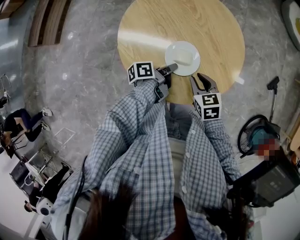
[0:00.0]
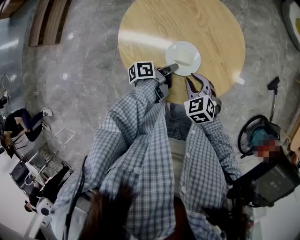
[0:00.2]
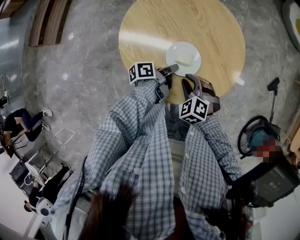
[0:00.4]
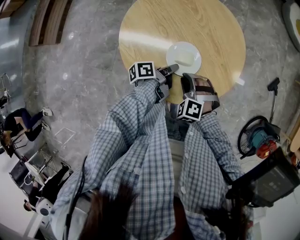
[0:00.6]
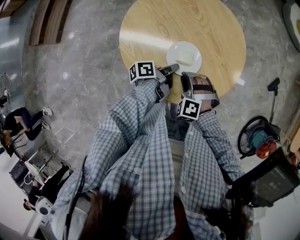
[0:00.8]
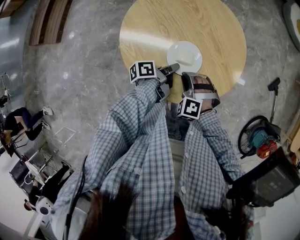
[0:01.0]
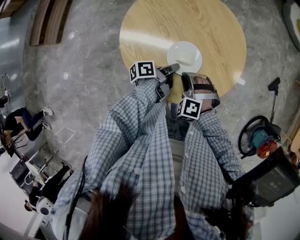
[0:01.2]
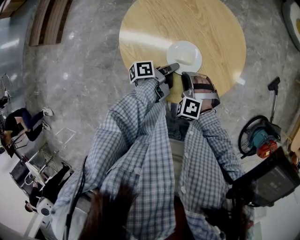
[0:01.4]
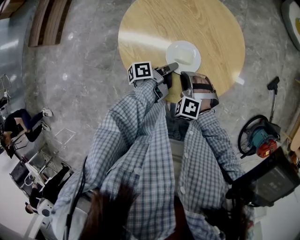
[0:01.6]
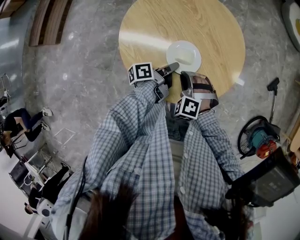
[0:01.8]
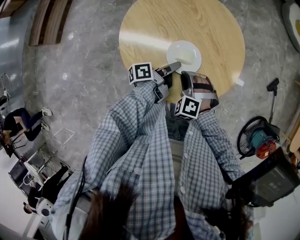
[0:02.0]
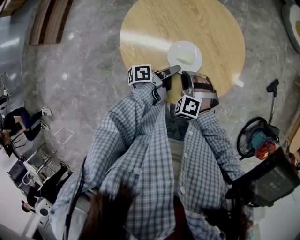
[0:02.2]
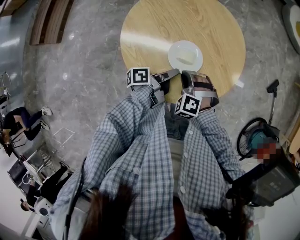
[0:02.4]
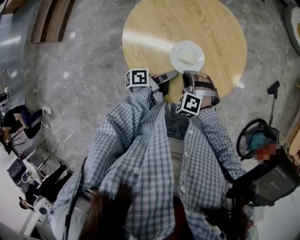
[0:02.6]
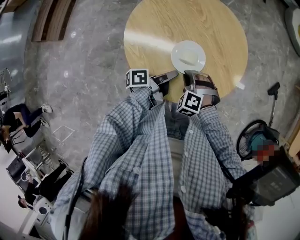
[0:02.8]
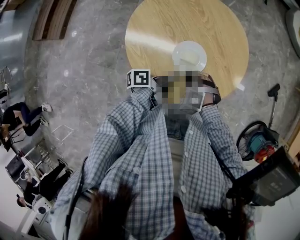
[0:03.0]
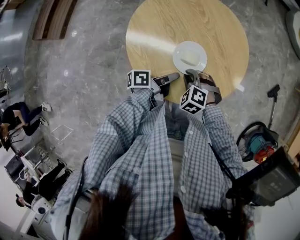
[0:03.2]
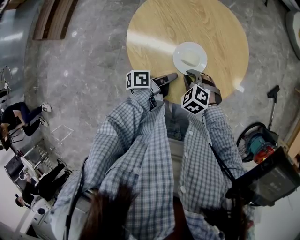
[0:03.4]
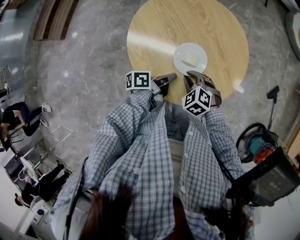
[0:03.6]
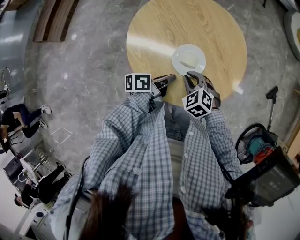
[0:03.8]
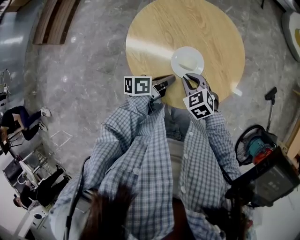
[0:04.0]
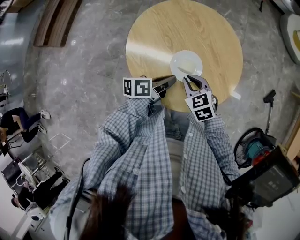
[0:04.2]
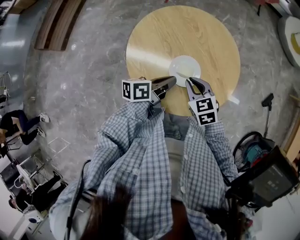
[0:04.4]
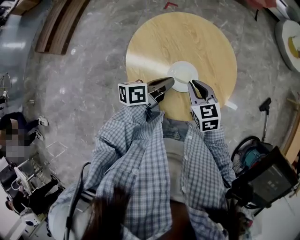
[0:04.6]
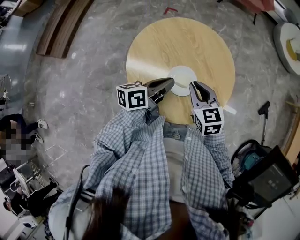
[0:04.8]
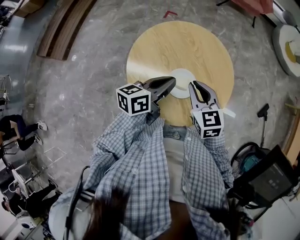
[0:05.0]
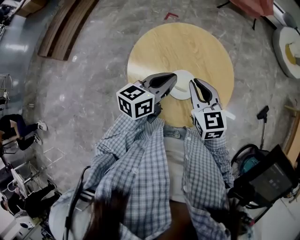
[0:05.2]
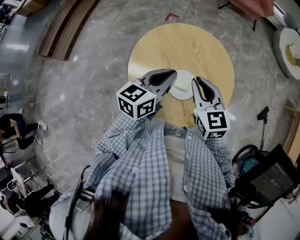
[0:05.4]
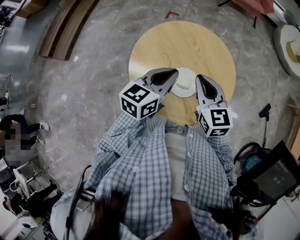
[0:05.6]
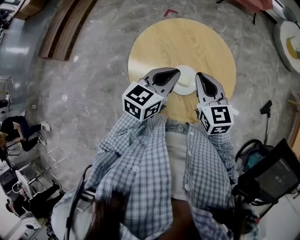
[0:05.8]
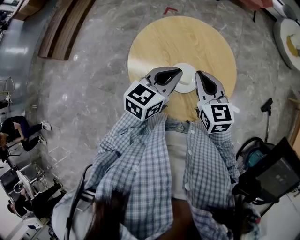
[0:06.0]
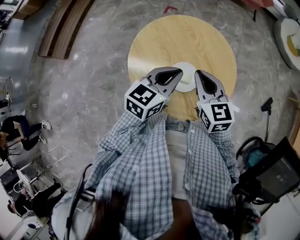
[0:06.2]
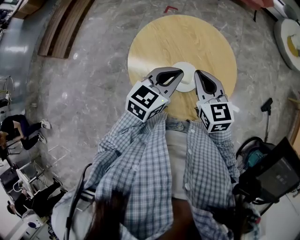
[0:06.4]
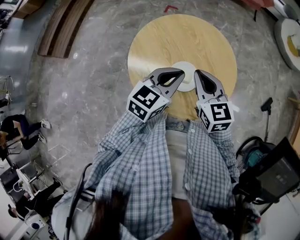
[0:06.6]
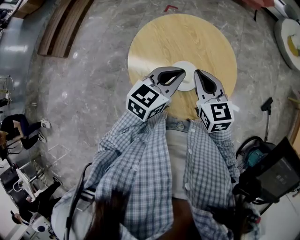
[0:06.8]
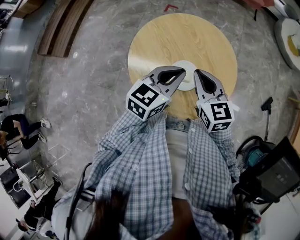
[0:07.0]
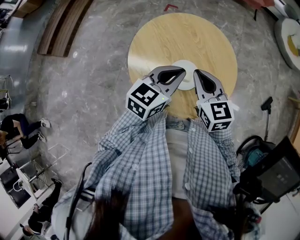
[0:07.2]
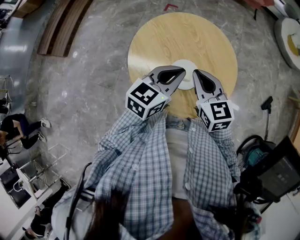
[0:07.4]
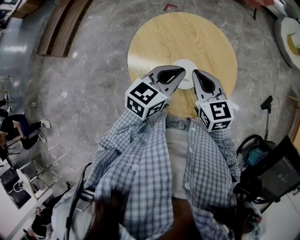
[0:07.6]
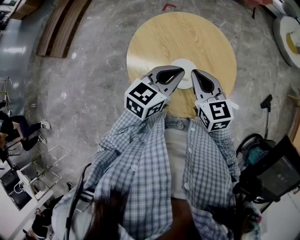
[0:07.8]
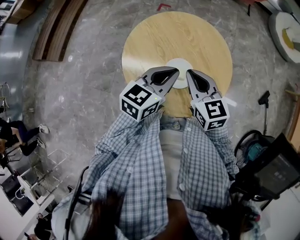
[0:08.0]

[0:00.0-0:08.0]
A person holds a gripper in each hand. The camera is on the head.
0:00.0 to 0:01.6: The right gripper changes place by some 5 cm, and twists roughly 60 degrees counterclockwise, seen from behind.
0:03.2 to 0:04.8: The right gripper is displaced upward by approximately 15 cm, and rolls clockwise, seen from behind, by about 50 degrees.
0:04.8 to 0:06.4: The right gripper is displaced upward by roughly 5 cm.

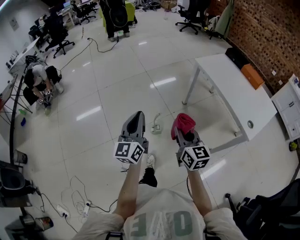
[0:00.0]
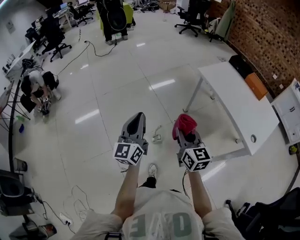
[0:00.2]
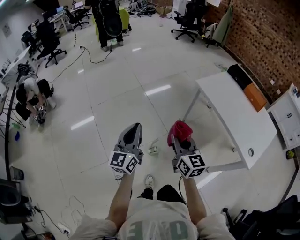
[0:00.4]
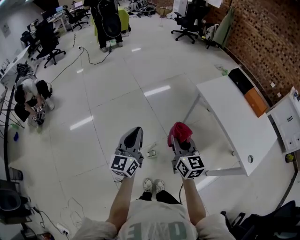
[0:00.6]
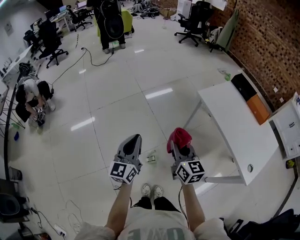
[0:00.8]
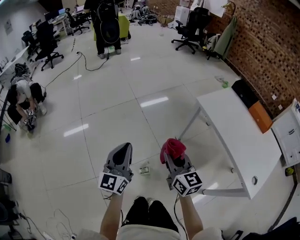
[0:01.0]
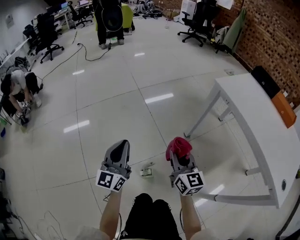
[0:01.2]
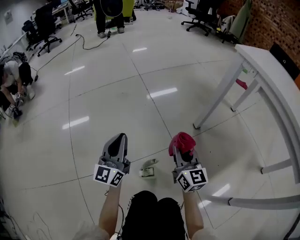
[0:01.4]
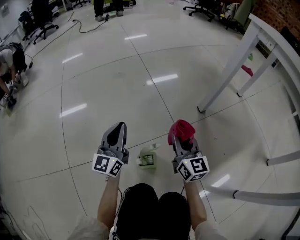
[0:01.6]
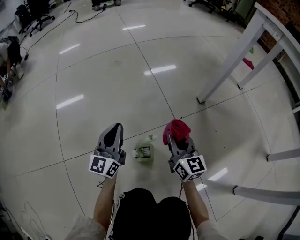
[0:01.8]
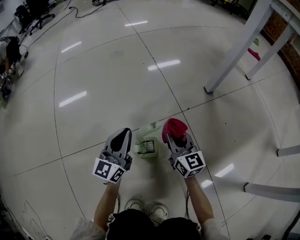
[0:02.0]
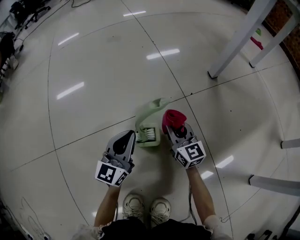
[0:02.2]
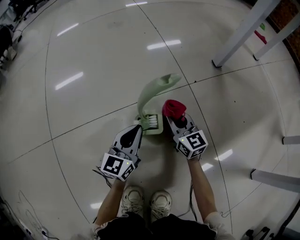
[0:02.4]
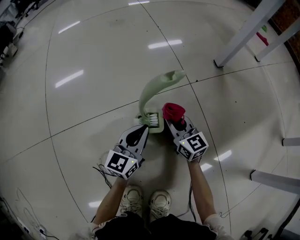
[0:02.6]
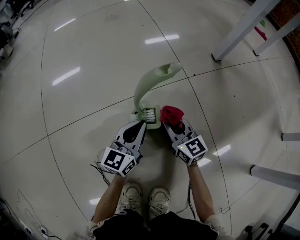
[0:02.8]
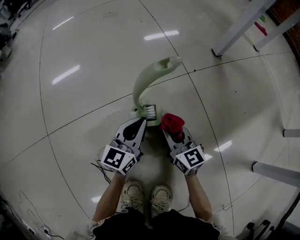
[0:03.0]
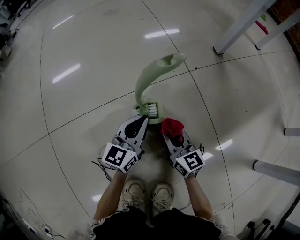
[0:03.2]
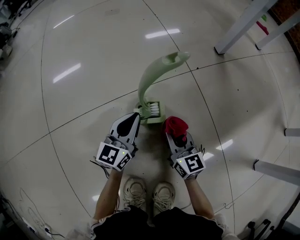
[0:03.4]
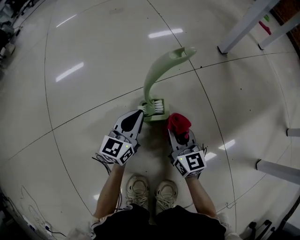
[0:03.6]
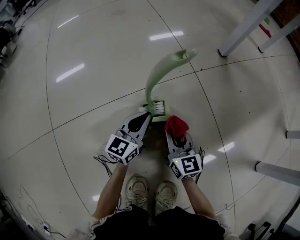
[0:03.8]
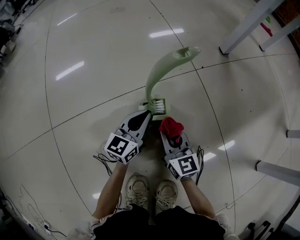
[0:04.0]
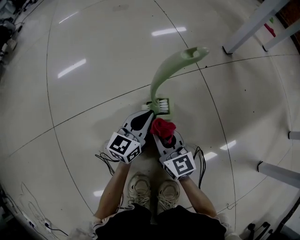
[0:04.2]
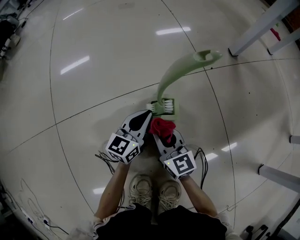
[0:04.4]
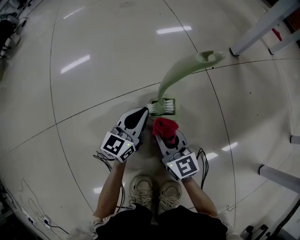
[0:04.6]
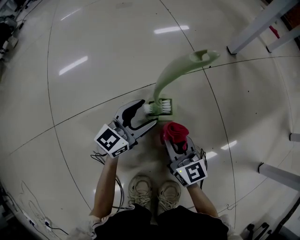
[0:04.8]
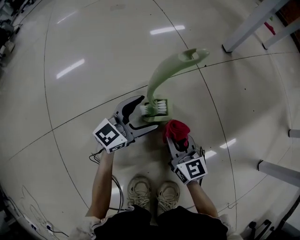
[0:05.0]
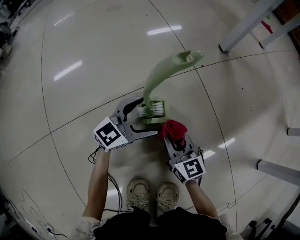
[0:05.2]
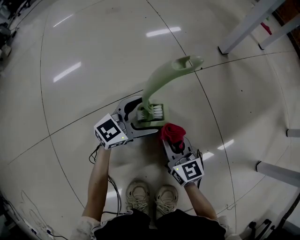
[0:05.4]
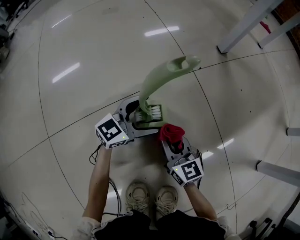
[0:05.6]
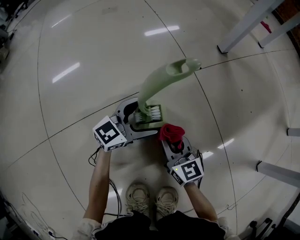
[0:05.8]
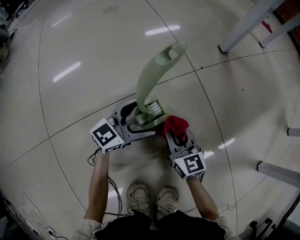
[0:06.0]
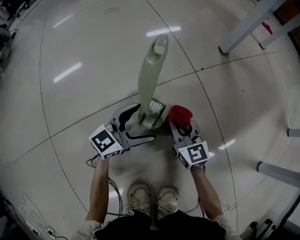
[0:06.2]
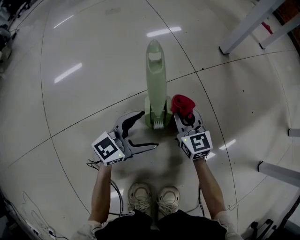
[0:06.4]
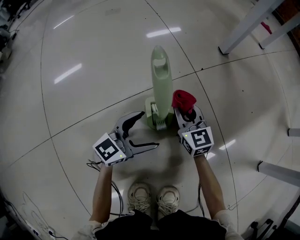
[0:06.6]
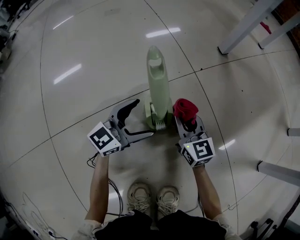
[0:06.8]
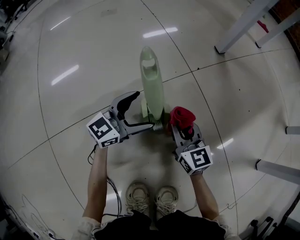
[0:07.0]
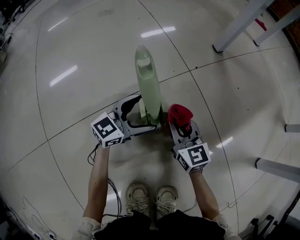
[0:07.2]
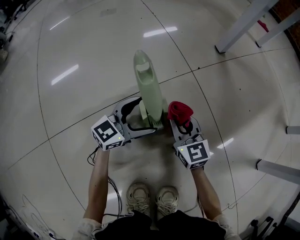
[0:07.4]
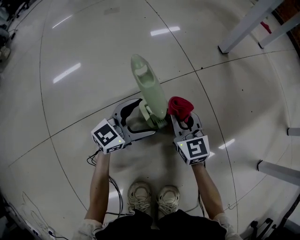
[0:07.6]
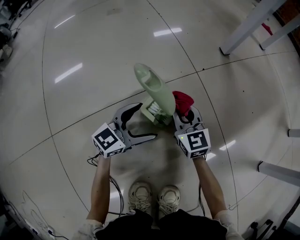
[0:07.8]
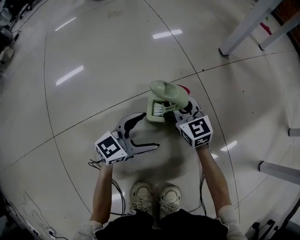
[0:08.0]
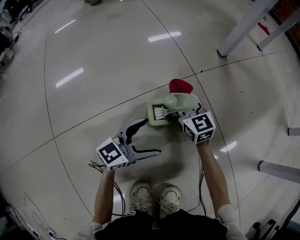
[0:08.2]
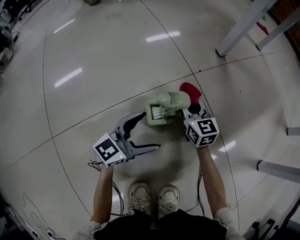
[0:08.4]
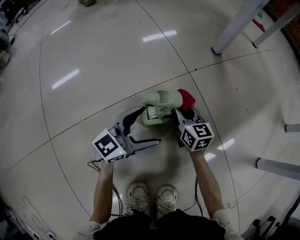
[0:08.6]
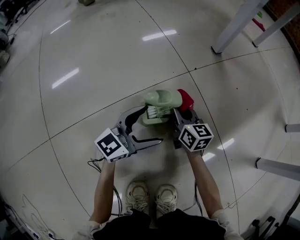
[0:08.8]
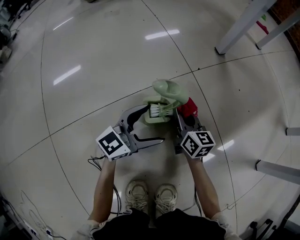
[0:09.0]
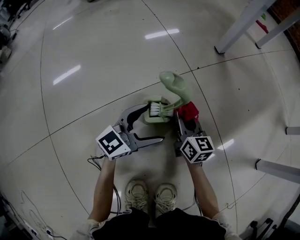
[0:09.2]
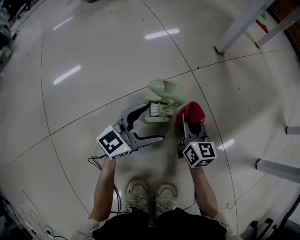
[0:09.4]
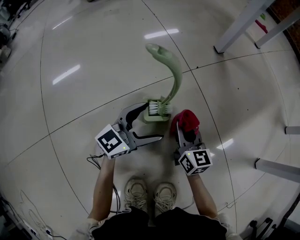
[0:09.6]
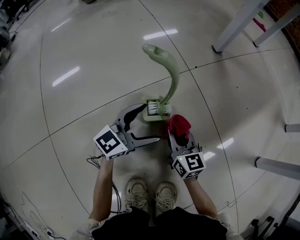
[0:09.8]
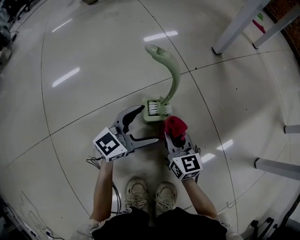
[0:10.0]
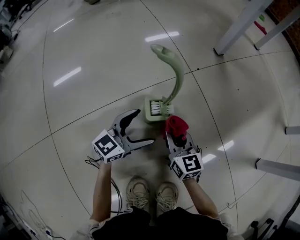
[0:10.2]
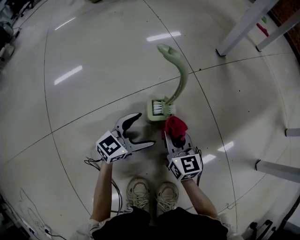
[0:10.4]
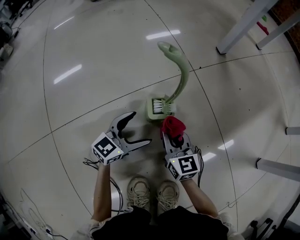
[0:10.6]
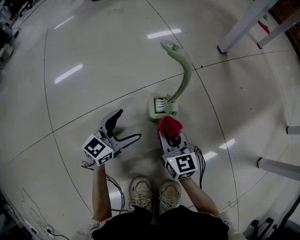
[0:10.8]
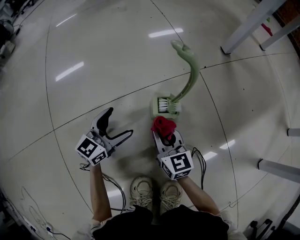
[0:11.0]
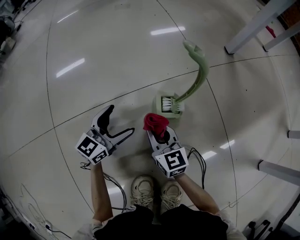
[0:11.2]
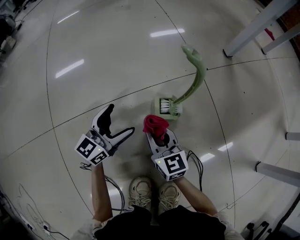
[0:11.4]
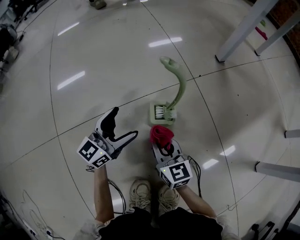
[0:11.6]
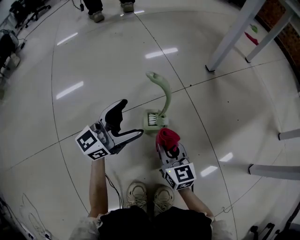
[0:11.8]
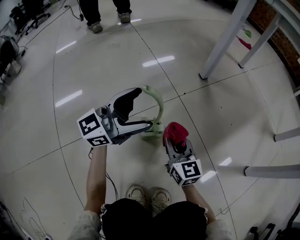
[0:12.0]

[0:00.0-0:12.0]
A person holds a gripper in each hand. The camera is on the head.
0:00.0 to 0:01.6: The two grippers go some 70 cm downward and forward.
0:01.6 to 0:03.0: Both grippers move downward and backward, approximately 30 cm. The left gripper changes its angle by about 20 degrees.
0:03.0 to 0:04.4: The right gripper moves to the left, some 10 cm. Meanwhile the left gripper shifts by approximately 5 cm.
0:04.4 to 0:06.0: The right gripper goes about 10 cm to the right and forward, while the left gripper moves roughly 5 cm, changes its angle by approximately 30 degrees, and opens.
0:06.0 to 0:07.6: The right gripper is displaced forward by some 5 cm.
0:07.6 to 0:09.0: The left gripper moves roughly 5 cm. The right gripper ends up about 5 cm from where it was, and rotates about 30 degrees.
0:09.0 to 0:10.4: The right gripper goes some 10 cm backward, while the left gripper travels downward by some 5 cm.
0:10.4 to 0:12.0: The left gripper shifts approximately 30 cm upward, and changes its angle by some 30 degrees; the right gripper is displaced upward by about 15 cm.

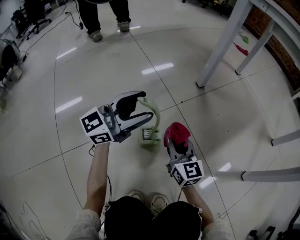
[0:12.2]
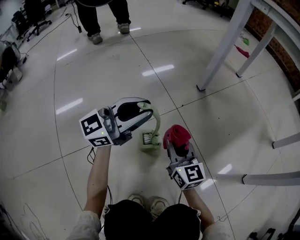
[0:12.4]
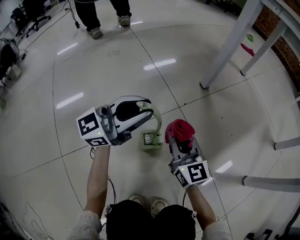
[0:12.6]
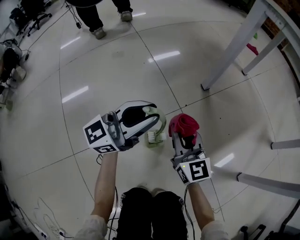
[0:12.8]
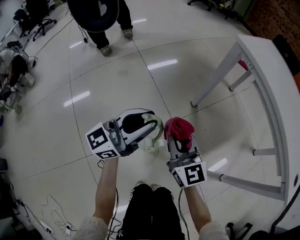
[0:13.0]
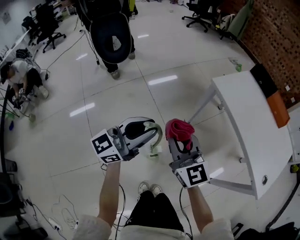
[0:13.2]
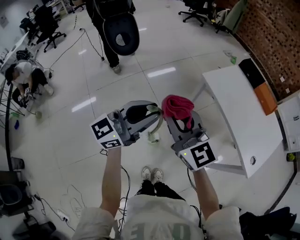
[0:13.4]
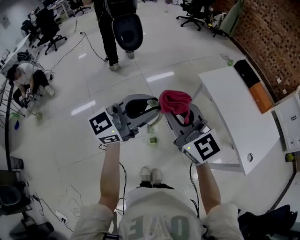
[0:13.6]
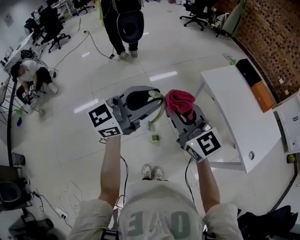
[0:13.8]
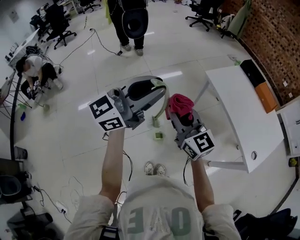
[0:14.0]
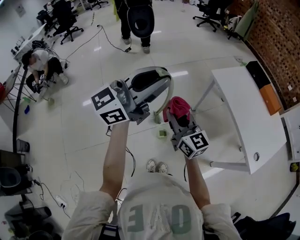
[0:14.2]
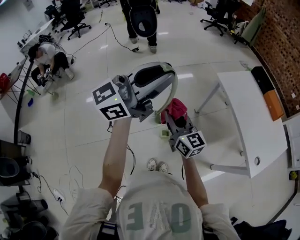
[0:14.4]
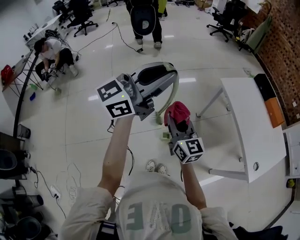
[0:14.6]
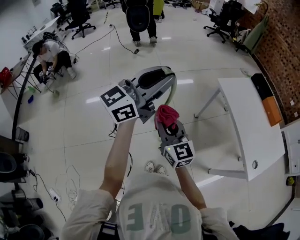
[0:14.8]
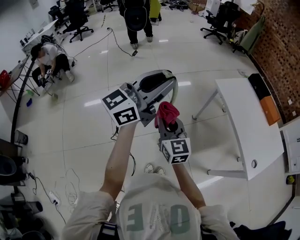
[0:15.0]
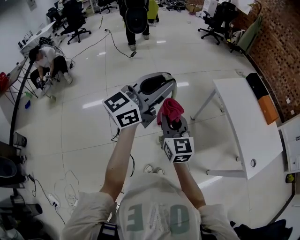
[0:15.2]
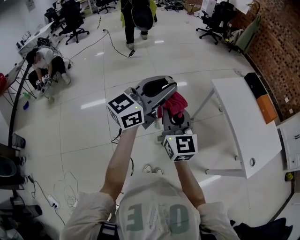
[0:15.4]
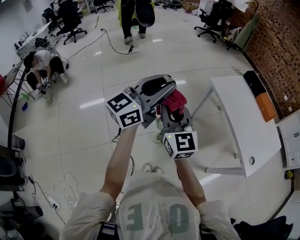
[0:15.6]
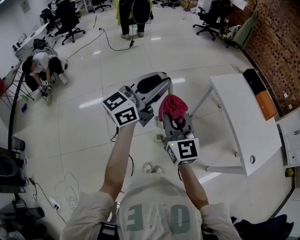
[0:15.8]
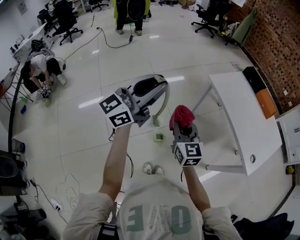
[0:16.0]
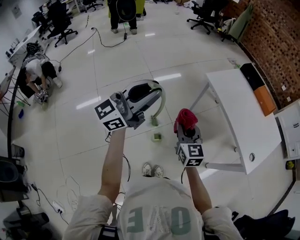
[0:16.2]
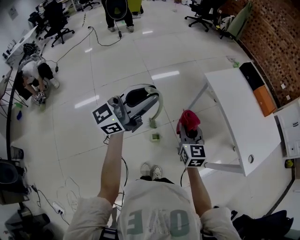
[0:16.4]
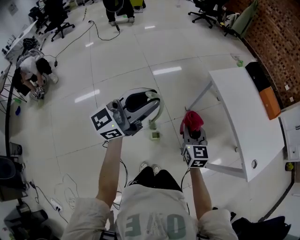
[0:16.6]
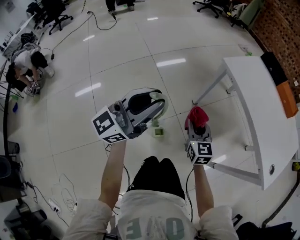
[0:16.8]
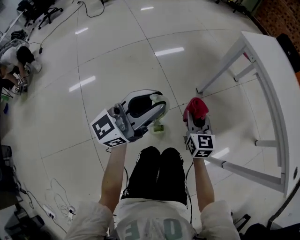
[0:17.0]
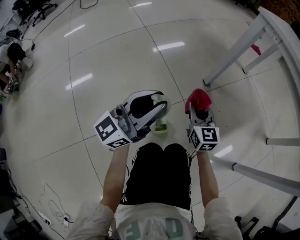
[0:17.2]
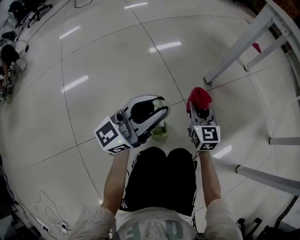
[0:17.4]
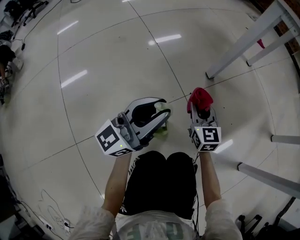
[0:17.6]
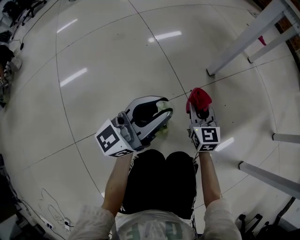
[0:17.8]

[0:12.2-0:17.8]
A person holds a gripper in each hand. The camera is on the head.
0:12.2 to 0:13.6: Both grippers travel together upward, some 80 cm. The right gripper rotates about 30 degrees, while the left gripper closes.
0:13.6 to 0:15.0: The left gripper heads upward, covering roughly 5 cm; the right gripper travels downward, backward and to the left by some 15 cm.
0:15.0 to 0:16.4: The left gripper shifts roughly 5 cm downward, while the right gripper shifts approximately 15 cm to the right, forward and downward.
0:16.4 to 0:17.8: Both grippers move downward, some 70 cm.
